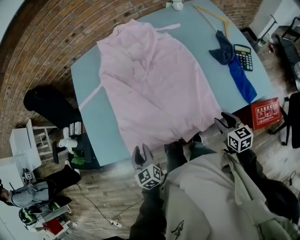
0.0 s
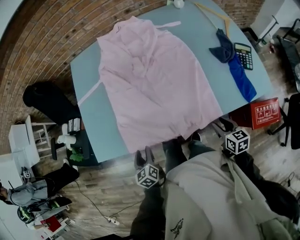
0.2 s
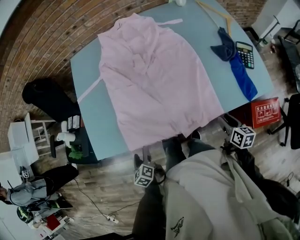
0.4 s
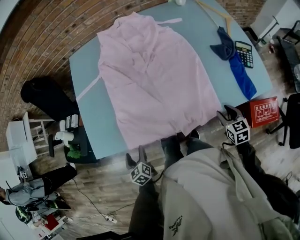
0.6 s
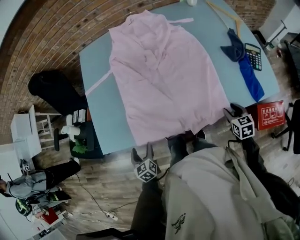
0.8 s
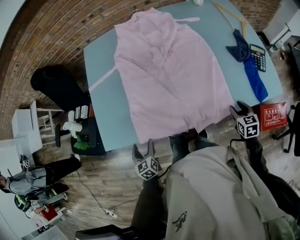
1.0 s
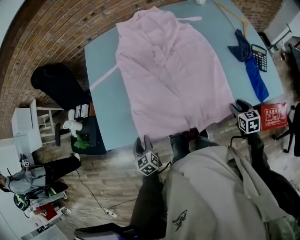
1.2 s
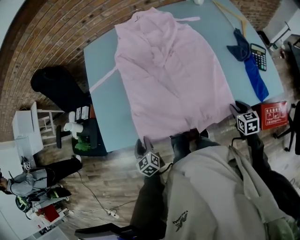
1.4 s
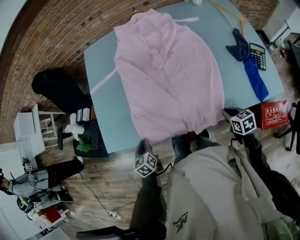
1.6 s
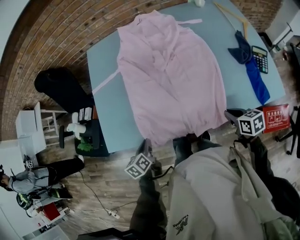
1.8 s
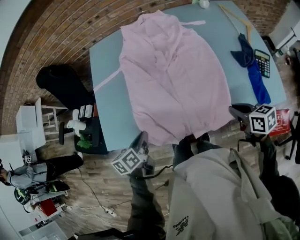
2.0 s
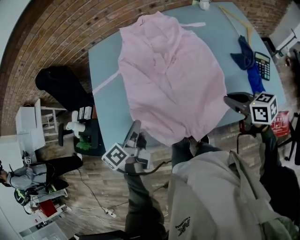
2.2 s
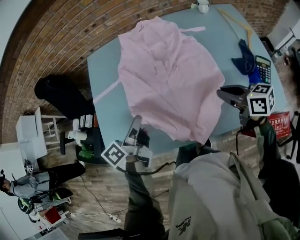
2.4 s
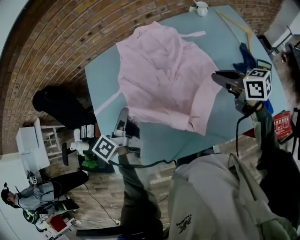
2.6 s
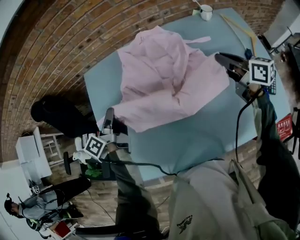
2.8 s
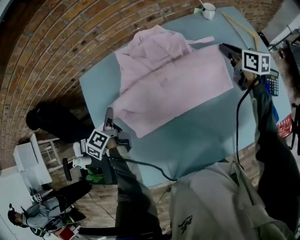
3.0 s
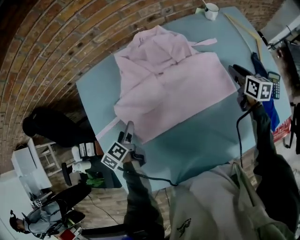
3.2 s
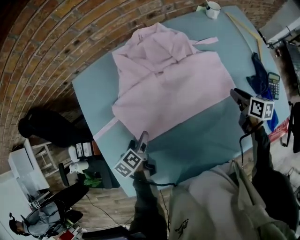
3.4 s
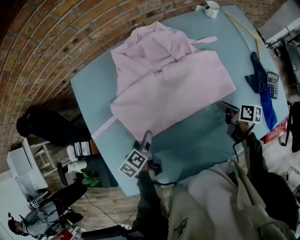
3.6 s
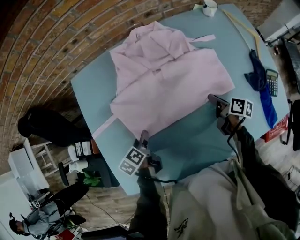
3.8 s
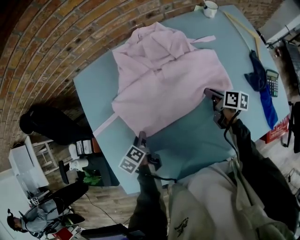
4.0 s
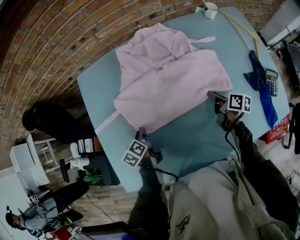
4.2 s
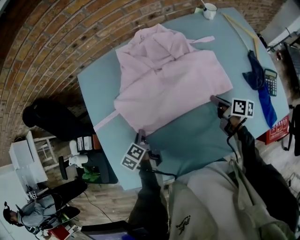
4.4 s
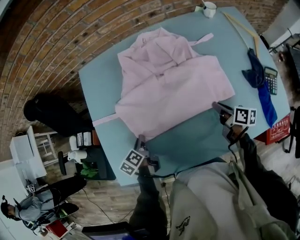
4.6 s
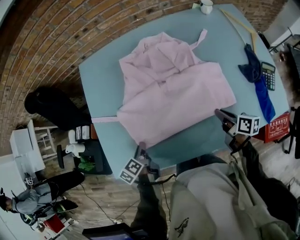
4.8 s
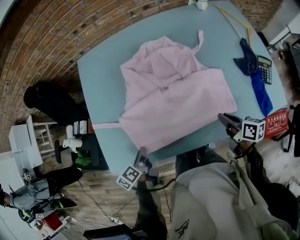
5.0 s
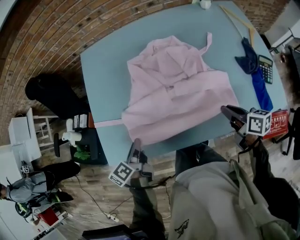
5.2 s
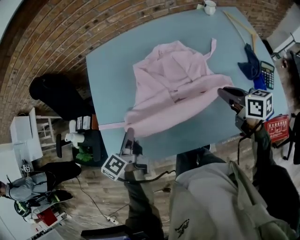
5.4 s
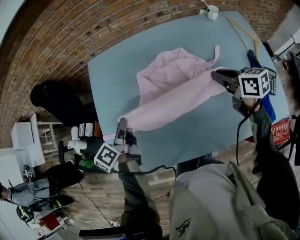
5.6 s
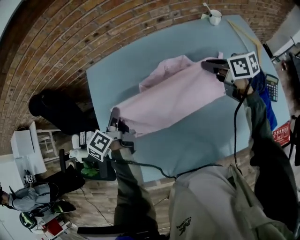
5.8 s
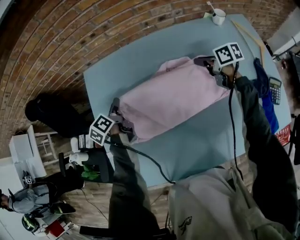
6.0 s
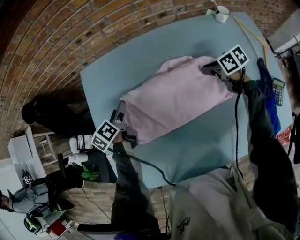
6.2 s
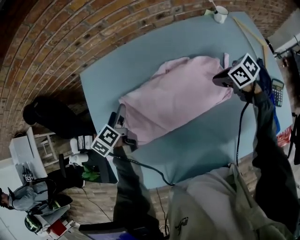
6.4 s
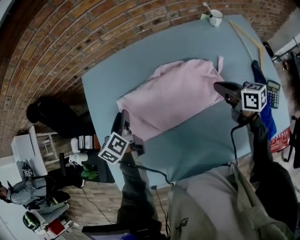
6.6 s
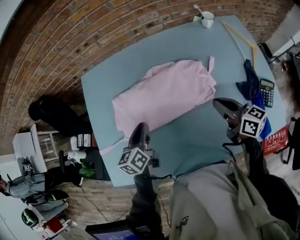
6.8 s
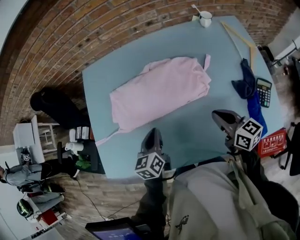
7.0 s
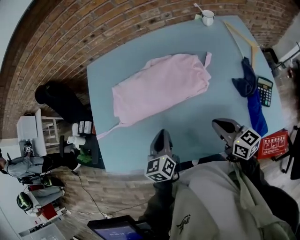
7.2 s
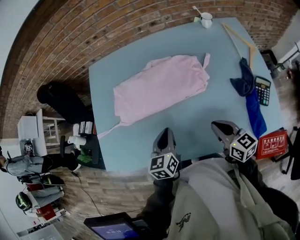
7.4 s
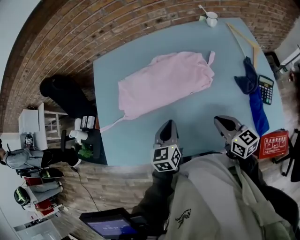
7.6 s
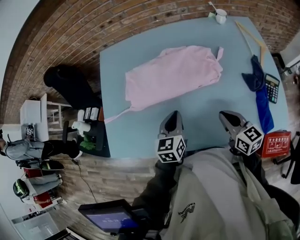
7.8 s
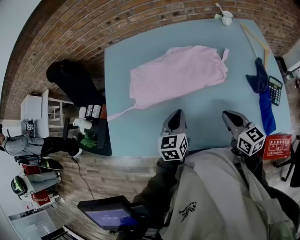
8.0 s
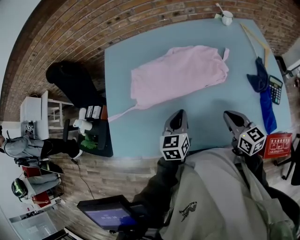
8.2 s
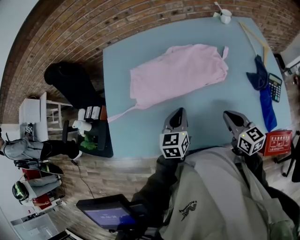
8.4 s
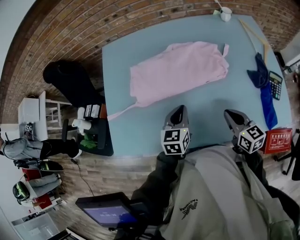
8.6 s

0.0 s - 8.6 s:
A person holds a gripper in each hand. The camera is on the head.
0.0 s - 1.4 s: The left gripper is displaced to the left and downward by approximately 10 cm, and opens, then closes once more. The right gripper is displaced downward by roughly 5 cm.
1.4 s - 2.8 s: Both grippers travel together forward and upward, about 40 cm. The left gripper changes its angle by about 60 degrees. Meanwhile the right gripper tips its fingers upward by approximately 40 degrees, and closes.
2.8 s - 4.4 s: The two grippers go some 20 cm downward and backward. The left gripper angles its fingers downward, by roughly 30 degrees, and opens, then closes again. Meanwhile the right gripper turns by roughly 40 degrees, and opens and closes again.
4.4 s - 5.8 s: The right gripper moves upward and forward, about 20 cm, and rotates some 40 degrees. Meanwhile the left gripper goes roughly 15 cm upward, travels backward and back again, approximately 20 cm each way, and turns by some 20 degrees.
5.8 s - 7.2 s: The left gripper is displaced backward and to the right by approximately 30 cm, turns by some 30 degrees, and opens, then closes again; the right gripper shifts approximately 25 cm backward.
7.2 s - 8.6 s: The grippers move only a little.

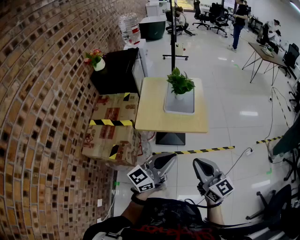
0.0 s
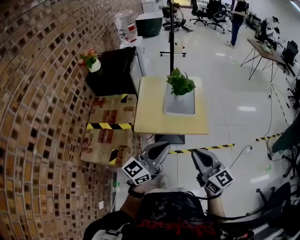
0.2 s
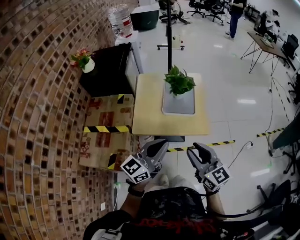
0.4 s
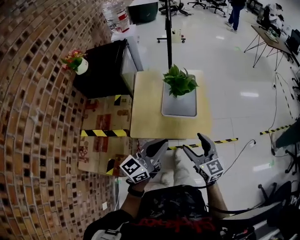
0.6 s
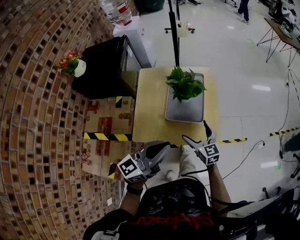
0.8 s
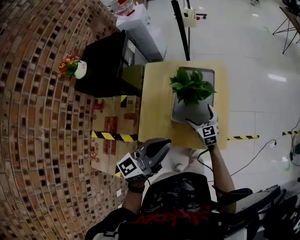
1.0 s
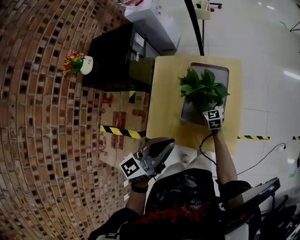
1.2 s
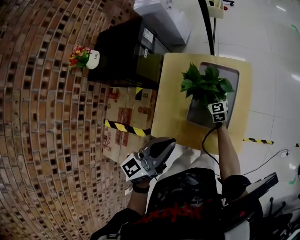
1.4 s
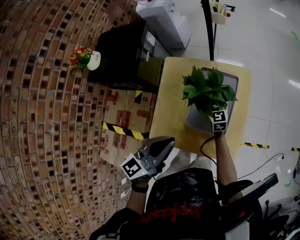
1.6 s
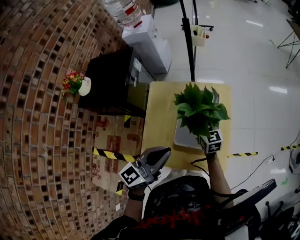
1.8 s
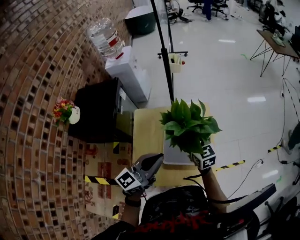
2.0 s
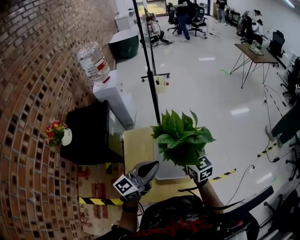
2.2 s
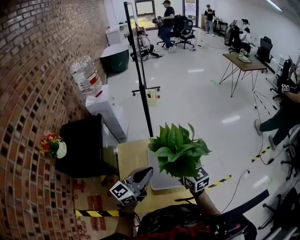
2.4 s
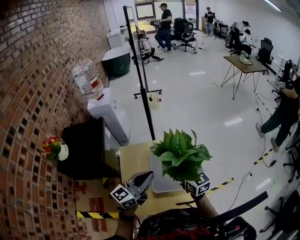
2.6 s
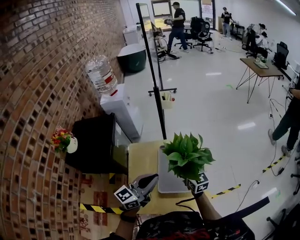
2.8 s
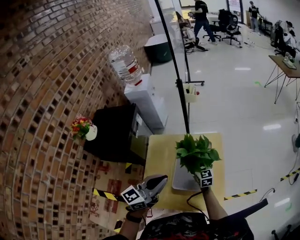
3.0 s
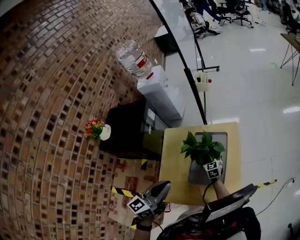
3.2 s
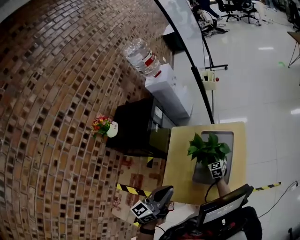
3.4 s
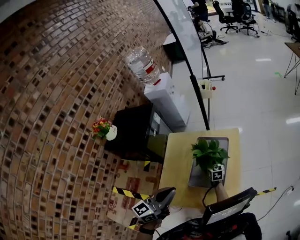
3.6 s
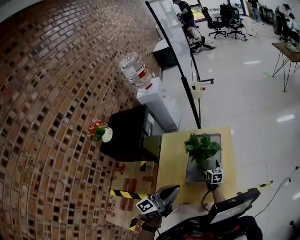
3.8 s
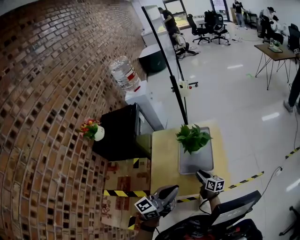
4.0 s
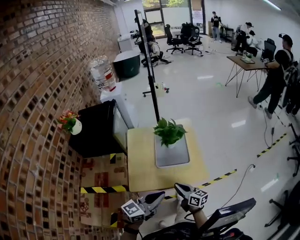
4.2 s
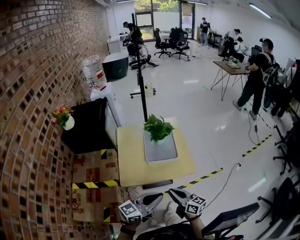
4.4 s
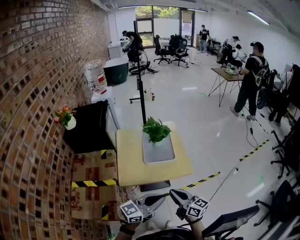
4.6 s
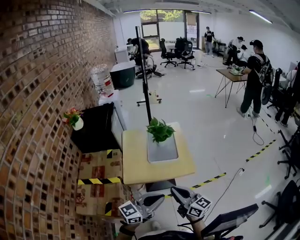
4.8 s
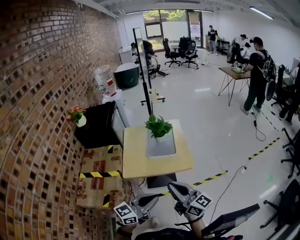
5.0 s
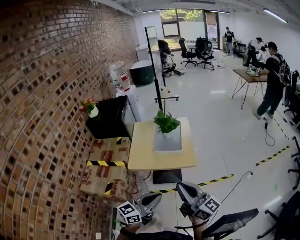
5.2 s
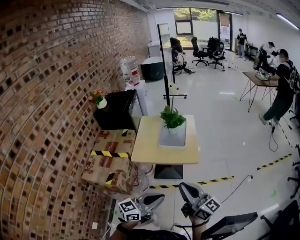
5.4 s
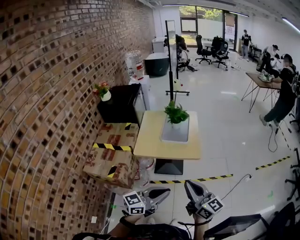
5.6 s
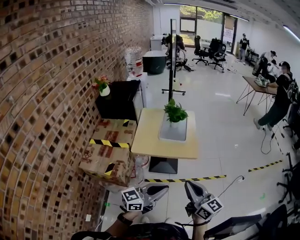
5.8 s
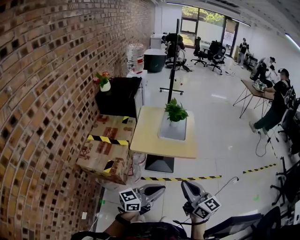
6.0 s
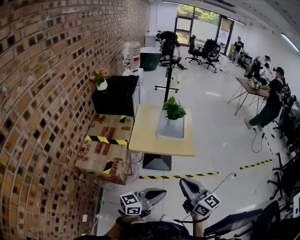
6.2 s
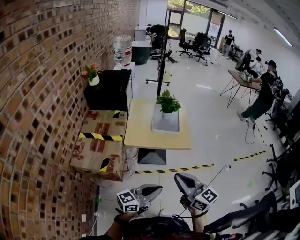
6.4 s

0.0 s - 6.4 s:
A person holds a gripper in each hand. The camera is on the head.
0.0 s - 1.6 s: The pair of grippers is taken forward, roughly 60 cm. The right gripper goes approximately 30 cm downward, and opens. Meanwhile the left gripper turns by roughly 20 degrees.
1.6 s - 3.2 s: The right gripper reaches roughly 30 cm upward, then returns.
3.2 s - 4.8 s: The two grippers travel together, backward, approximately 50 cm. The right gripper shifts roughly 30 cm upward, angles its fingers upward, by roughly 30 degrees, and closes its fingers, while the left gripper rotates some 30 degrees.
4.8 s - 6.4 s: The two grippers go roughly 15 cm backward.

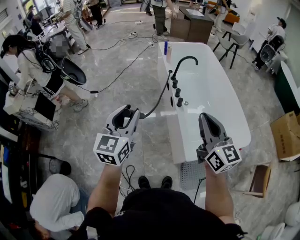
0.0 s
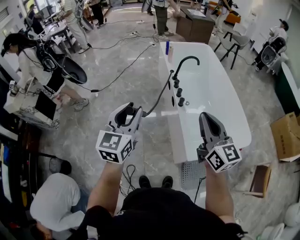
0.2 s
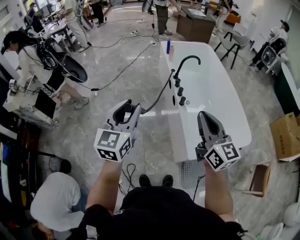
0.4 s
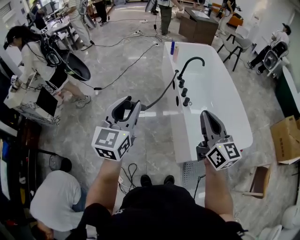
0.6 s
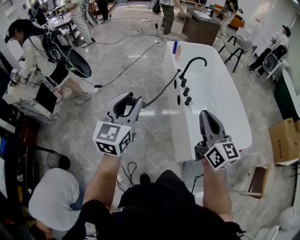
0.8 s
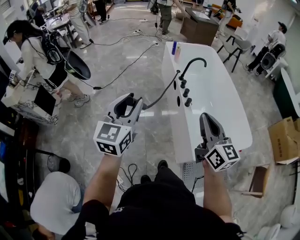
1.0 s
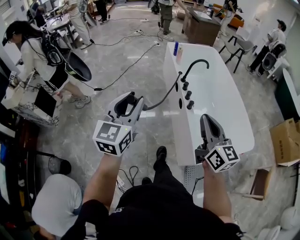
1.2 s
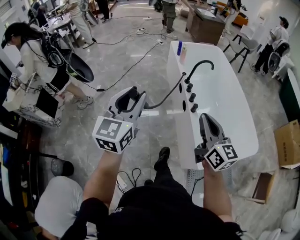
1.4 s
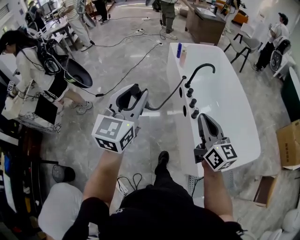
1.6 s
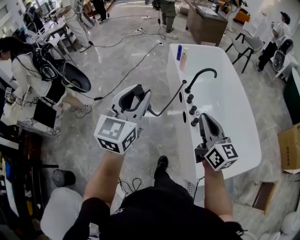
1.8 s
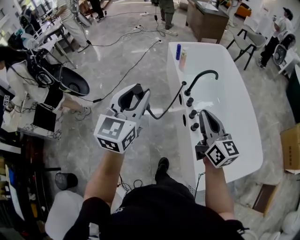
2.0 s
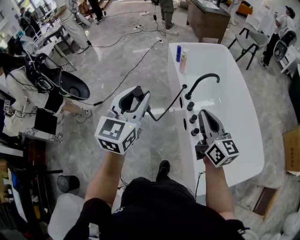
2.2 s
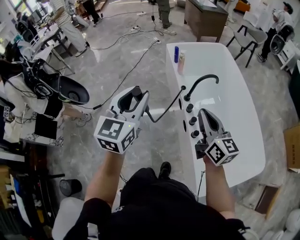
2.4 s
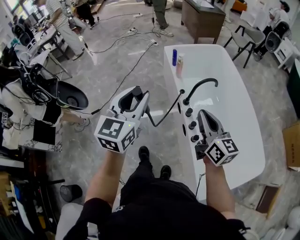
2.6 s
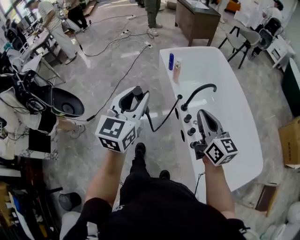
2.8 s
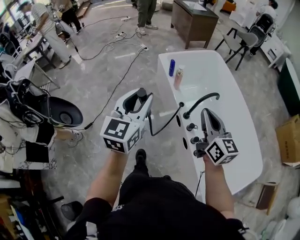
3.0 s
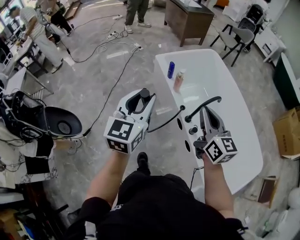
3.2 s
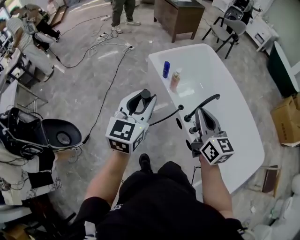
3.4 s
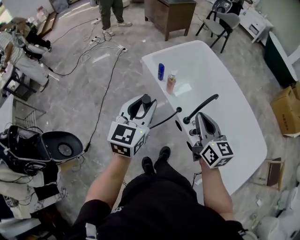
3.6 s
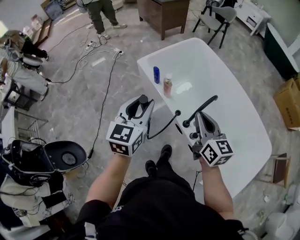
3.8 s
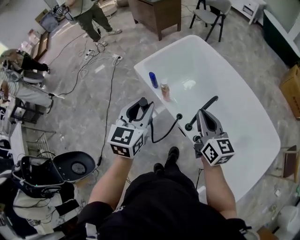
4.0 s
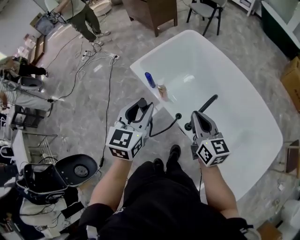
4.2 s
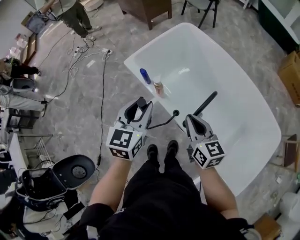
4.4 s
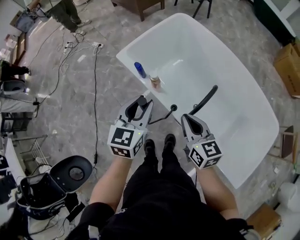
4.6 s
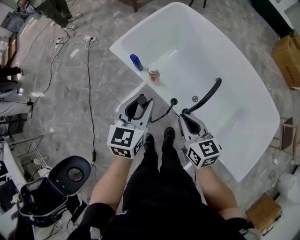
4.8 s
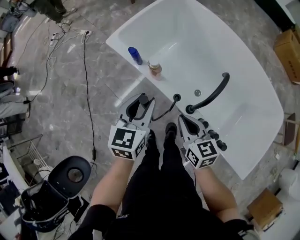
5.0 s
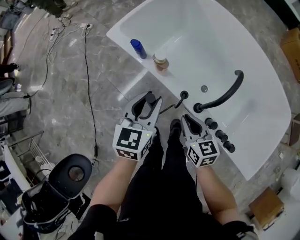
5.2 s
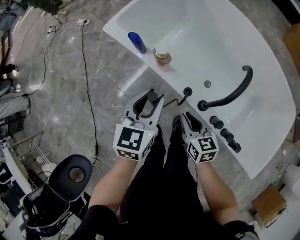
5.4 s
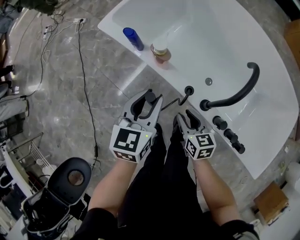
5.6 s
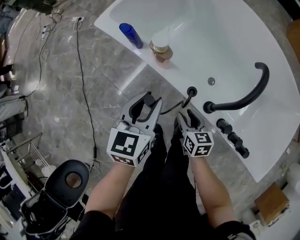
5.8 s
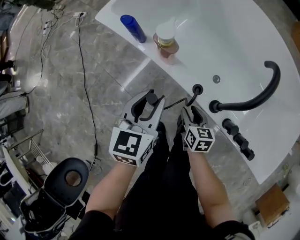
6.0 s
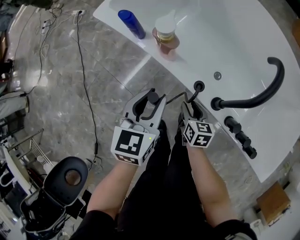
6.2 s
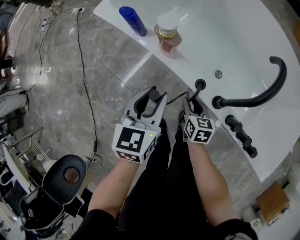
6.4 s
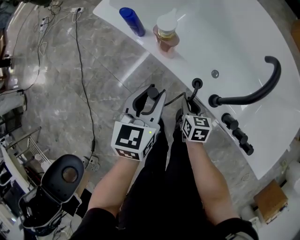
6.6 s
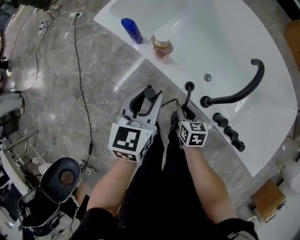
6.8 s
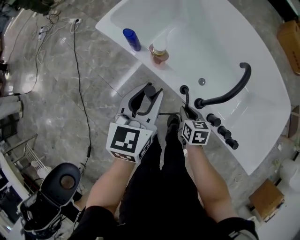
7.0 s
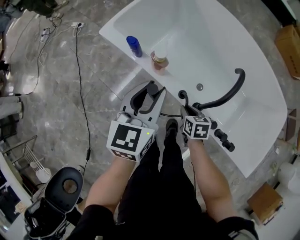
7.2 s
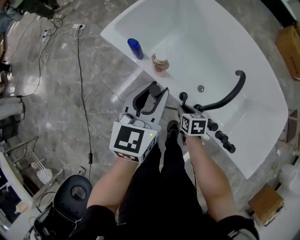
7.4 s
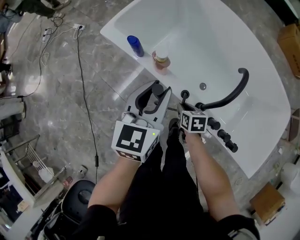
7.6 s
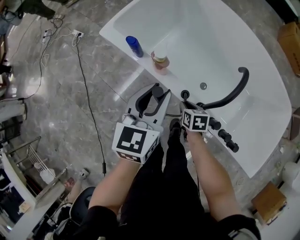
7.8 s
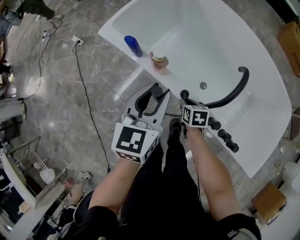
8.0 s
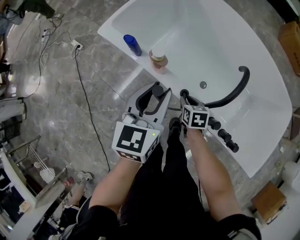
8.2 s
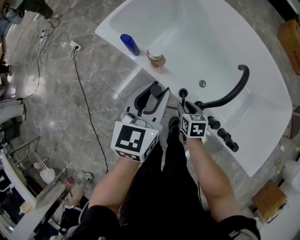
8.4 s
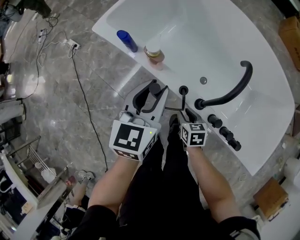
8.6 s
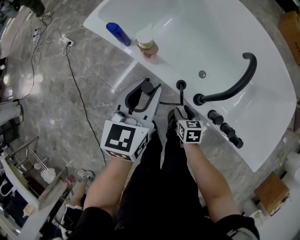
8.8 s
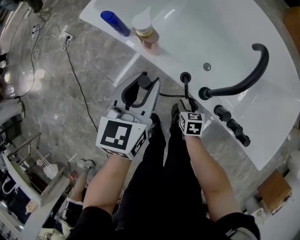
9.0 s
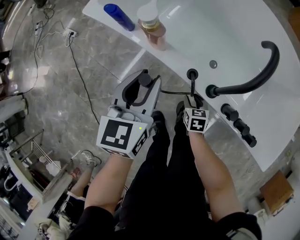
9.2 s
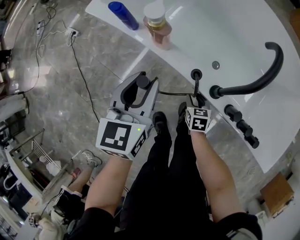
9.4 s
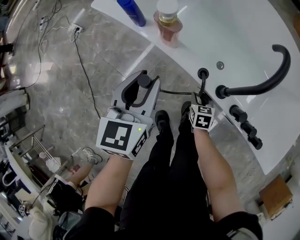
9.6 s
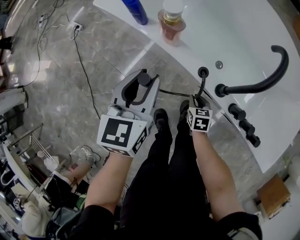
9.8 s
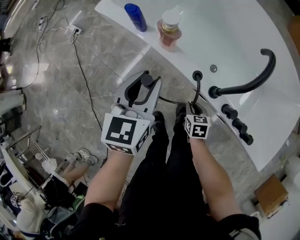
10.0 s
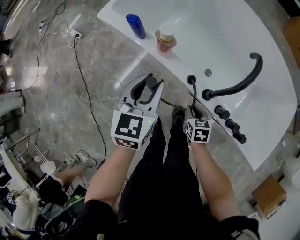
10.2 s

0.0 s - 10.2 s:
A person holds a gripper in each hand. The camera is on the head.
0.0 s - 1.4 s: The left gripper moves forward and to the left, roughly 15 cm; the right gripper goes some 15 cm to the left, forward and downward.
1.4 s - 3.0 s: The two grippers travel together, forward, some 50 cm.
3.0 s - 4.4 s: The right gripper goes roughly 25 cm forward and downward, and changes its angle by some 20 degrees; the left gripper is displaced forward by some 30 cm, and turns by approximately 30 degrees.
4.4 s - 5.8 s: Both grippers move downward, some 40 cm. The right gripper swivels approximately 30 degrees, and opens.
5.8 s - 7.2 s: The left gripper moves upward, some 15 cm, while the right gripper moves about 5 cm, and closes up.
7.2 s - 8.8 s: The two grippers go approximately 10 cm downward. The right gripper opens.
8.8 s - 10.2 s: The right gripper travels downward and back again, about 10 cm each way, and closes.
